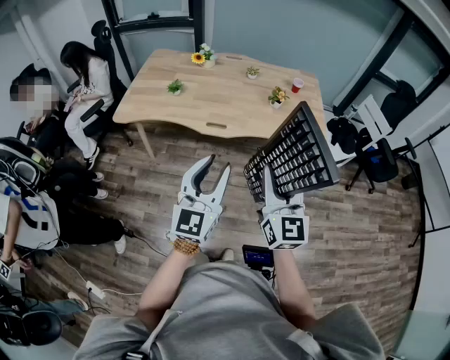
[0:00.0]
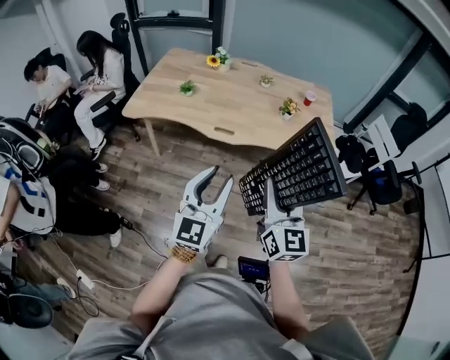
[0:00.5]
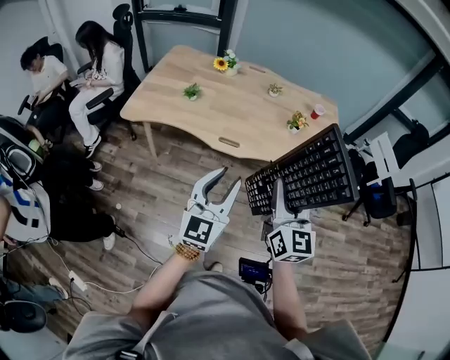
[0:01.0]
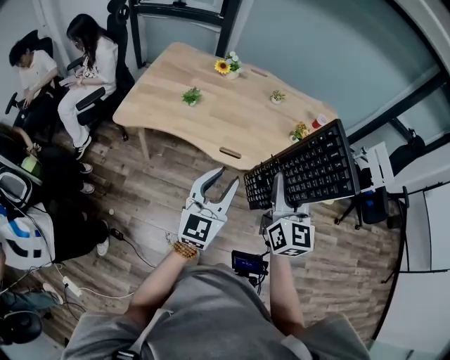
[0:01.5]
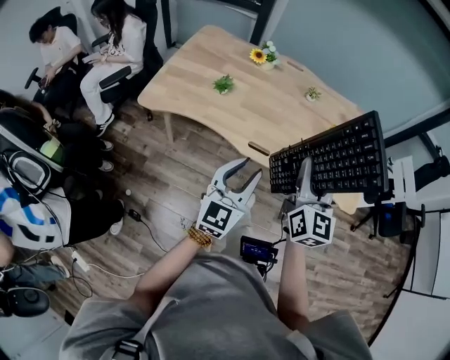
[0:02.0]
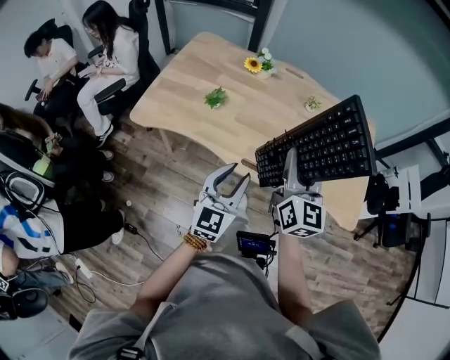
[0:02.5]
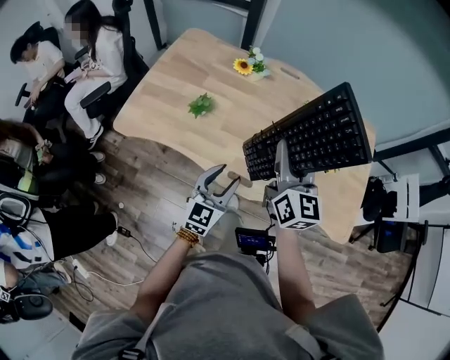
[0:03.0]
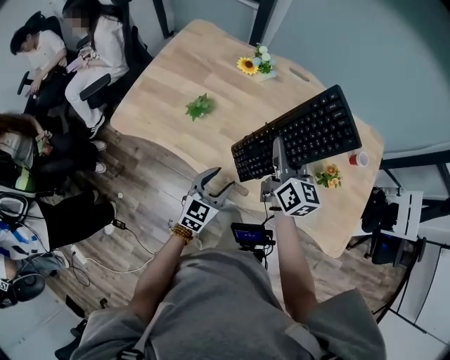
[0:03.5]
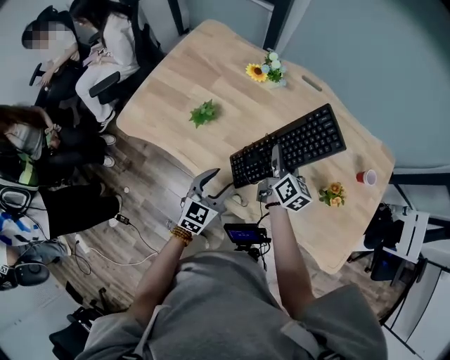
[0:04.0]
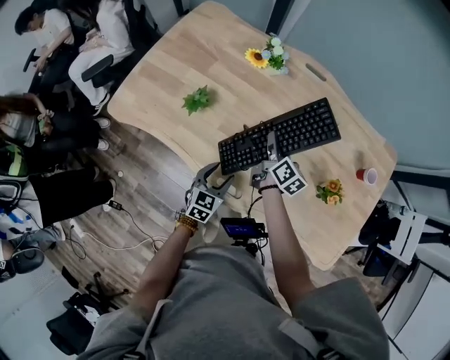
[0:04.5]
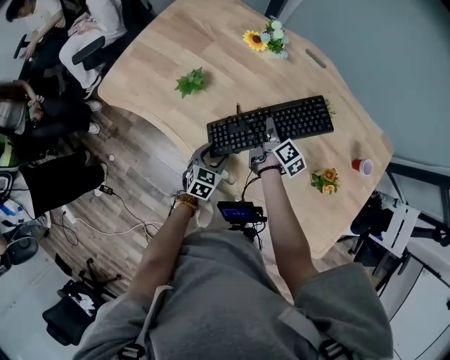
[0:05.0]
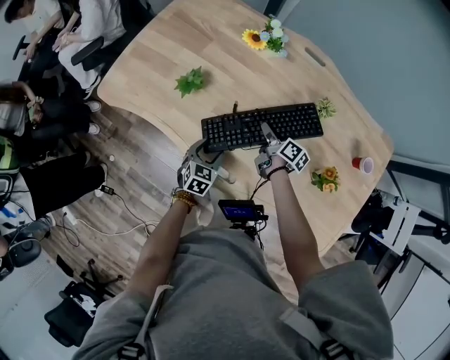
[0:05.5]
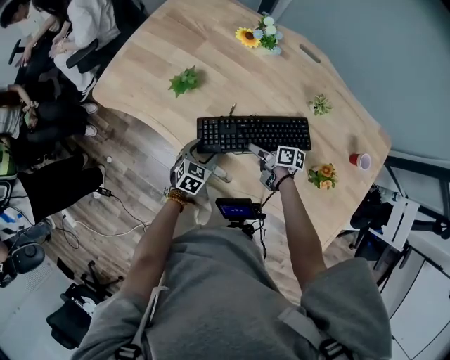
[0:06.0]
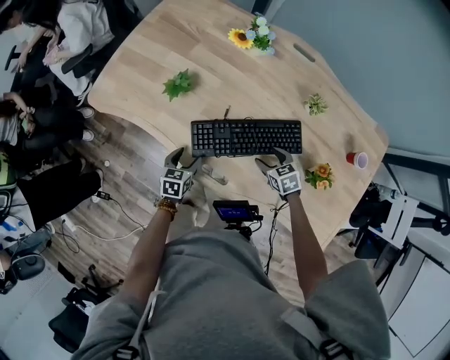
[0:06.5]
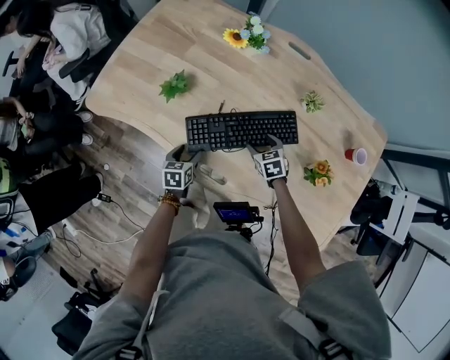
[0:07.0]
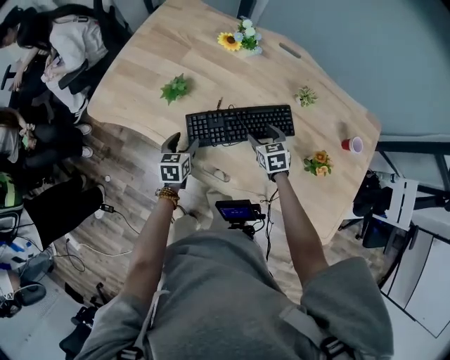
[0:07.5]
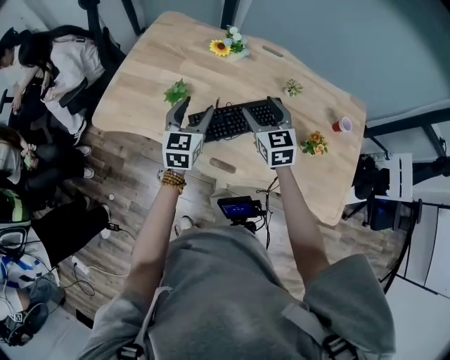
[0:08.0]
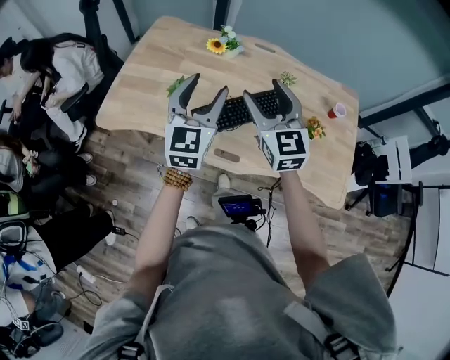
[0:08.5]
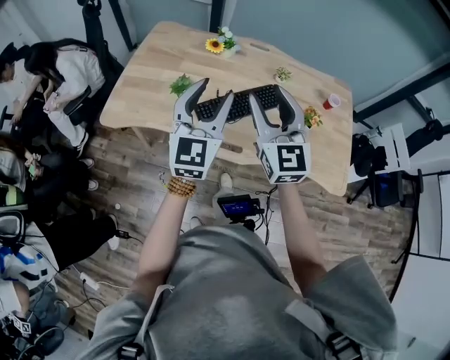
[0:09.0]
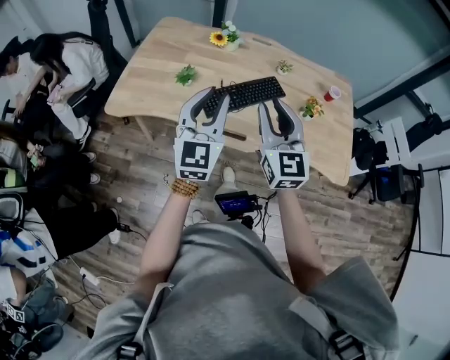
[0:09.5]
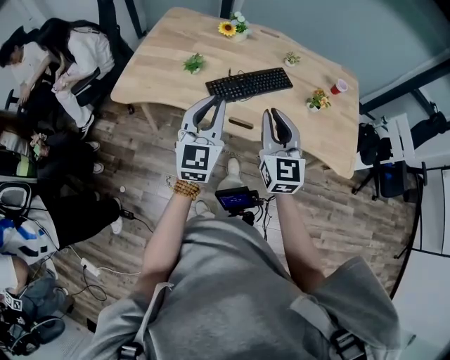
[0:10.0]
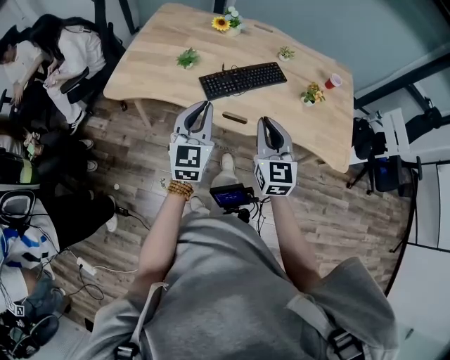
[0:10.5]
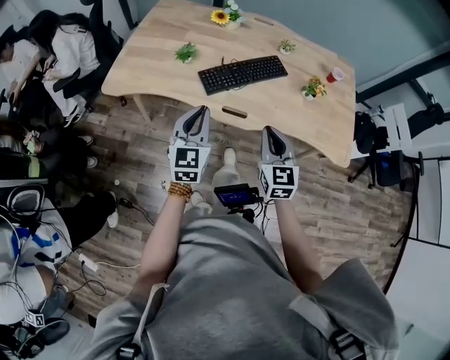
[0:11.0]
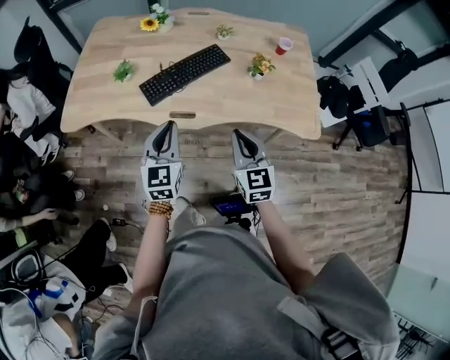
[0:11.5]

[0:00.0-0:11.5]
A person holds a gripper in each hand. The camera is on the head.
0:00.0 to 0:02.0: The right gripper moves forward and to the left, about 30 cm. Meanwhile the left gripper travels forward, to the left and downward by roughly 25 cm.
0:02.0 to 0:04.0: The two grippers go about 40 cm forward and downward. The left gripper turns by some 30 degrees. Meanwhile the right gripper swivels approximately 40 degrees.
0:04.0 to 0:06.0: Both grippers travel together downward, approximately 20 cm. The right gripper swivels approximately 60 degrees, and opens up. The left gripper rotates some 20 degrees.
0:06.0 to 0:07.5: The right gripper travels upward by approximately 5 cm, and rolls counterclockwise, seen from behind, by approximately 60 degrees; the left gripper travels to the left and forward by about 10 cm, and turns by approximately 20 degrees.
0:07.5 to 0:09.5: The two grippers go about 40 cm upward and backward. The left gripper points its fingers roughly 50 degrees further upward, and closes; the right gripper tips its fingers upward by about 50 degrees, and closes up.
0:09.5 to 0:11.5: Both grippers travel together downward, to the right and backward, roughly 20 cm. The right gripper swivels roughly 20 degrees.

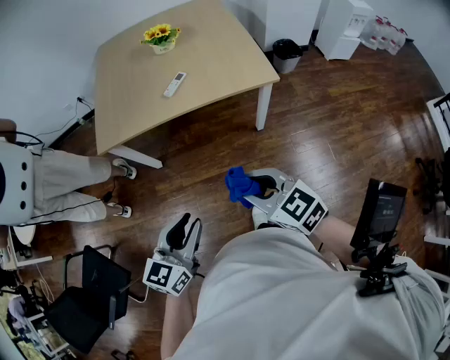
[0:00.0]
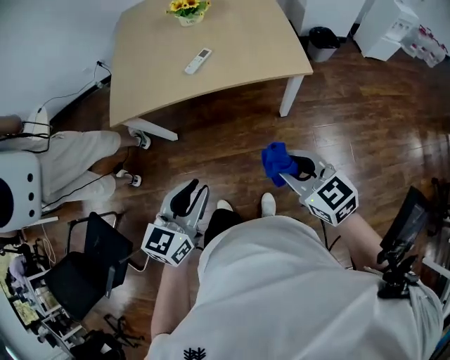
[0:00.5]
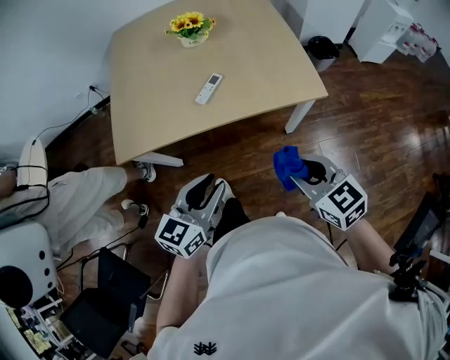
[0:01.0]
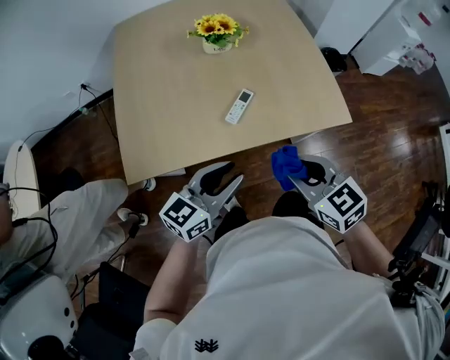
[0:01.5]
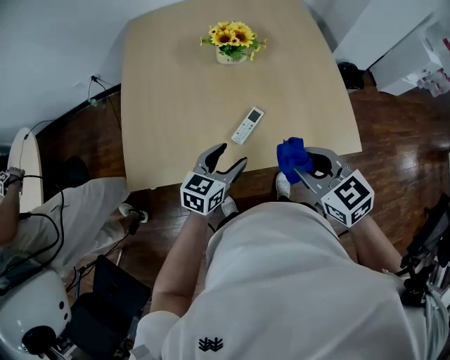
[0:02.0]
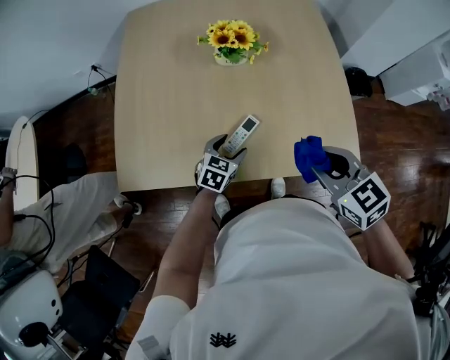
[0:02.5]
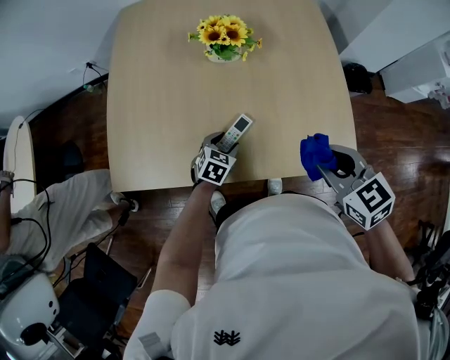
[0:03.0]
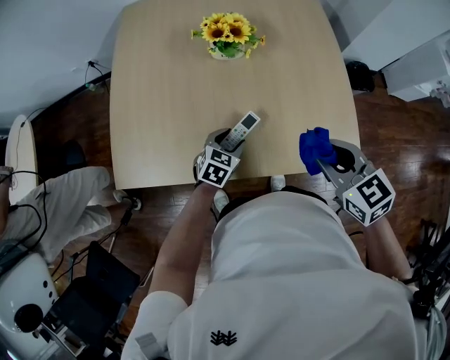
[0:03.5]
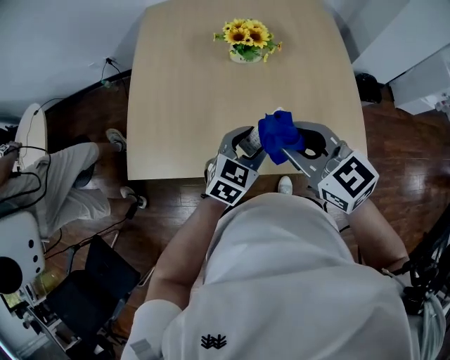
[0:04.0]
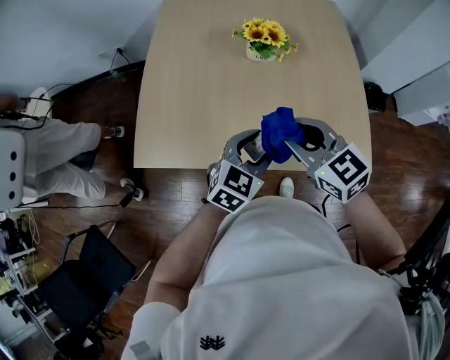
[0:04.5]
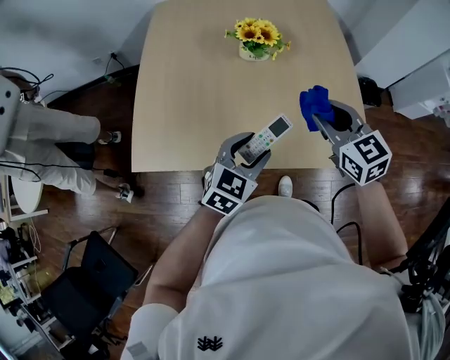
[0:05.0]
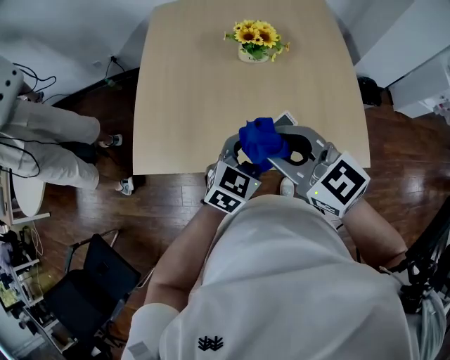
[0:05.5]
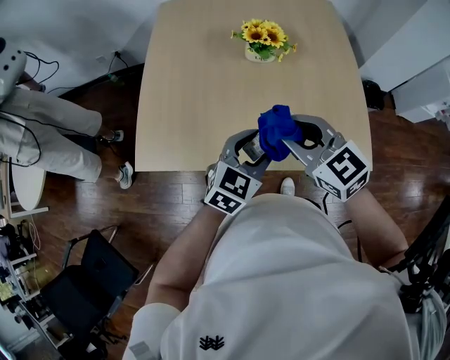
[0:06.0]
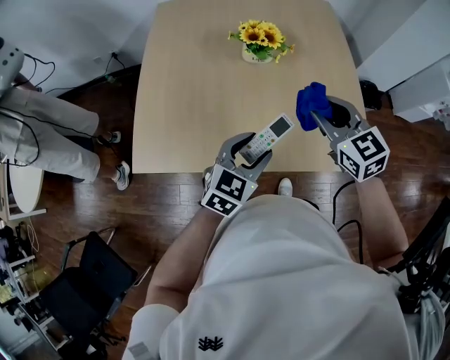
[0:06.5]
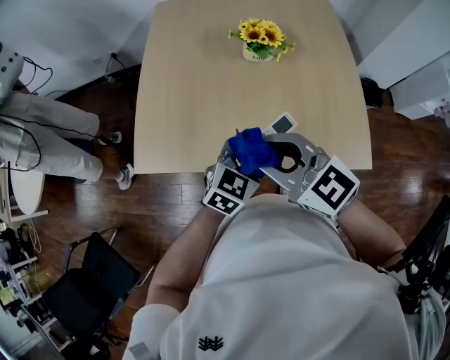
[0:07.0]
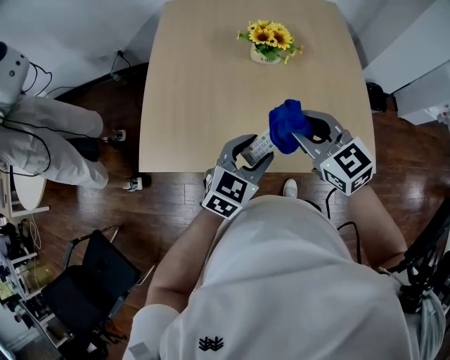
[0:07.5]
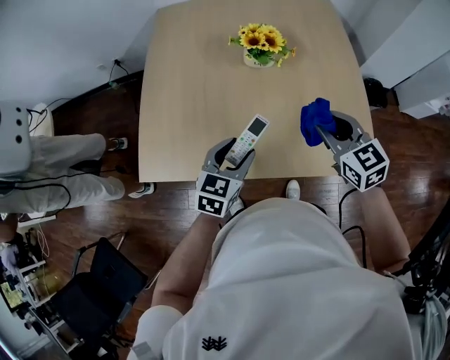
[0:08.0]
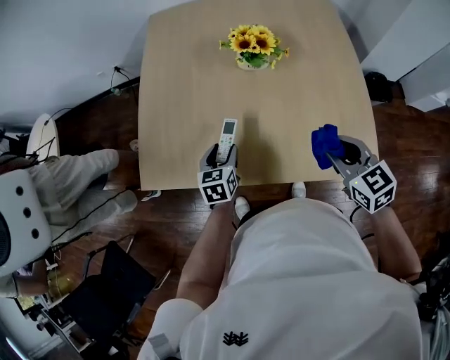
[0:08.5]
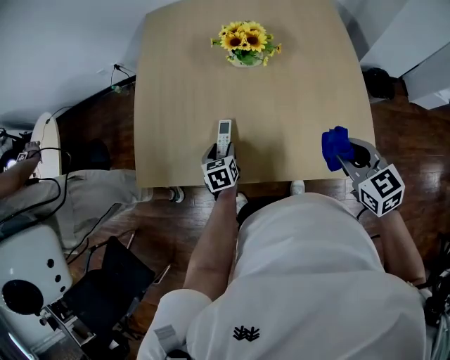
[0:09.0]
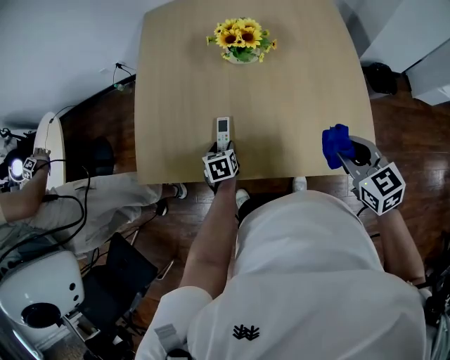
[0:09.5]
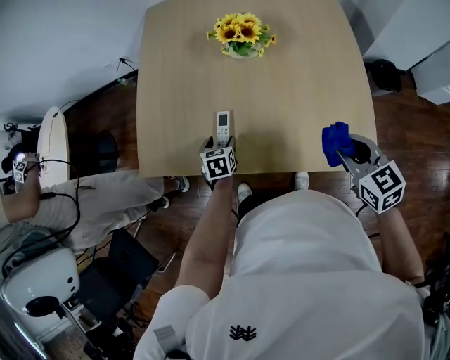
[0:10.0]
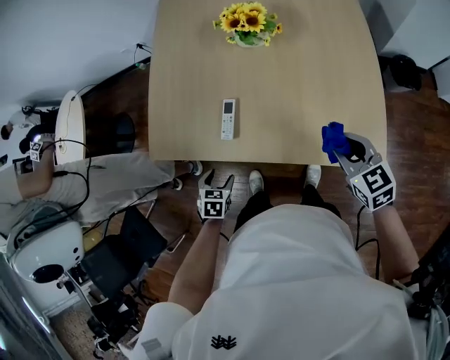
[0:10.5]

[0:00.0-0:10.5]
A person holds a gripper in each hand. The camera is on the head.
0:00.0 to 0:02.0: The two grippers travel together, forward, about 50 cm. The left gripper opens up.
0:02.0 to 0:04.0: The left gripper moves to the right, roughly 5 cm, and moves some 15 cm downward and comes back. The right gripper moves forward and upward, some 10 cm, and travels to the right and back again, some 10 cm each way.
0:04.0 to 0:06.5: The left gripper moves roughly 5 cm; the right gripper moves left and right over about 15 cm, changing direction 2 times.
0:06.5 to 0:08.5: The left gripper goes about 15 cm downward, to the left and forward, and rotates approximately 40 degrees; the right gripper shifts approximately 5 cm downward, and moves approximately 15 cm to the left and comes back.
0:08.5 to 0:10.5: The left gripper travels backward and downward by some 20 cm, and swivels approximately 30 degrees; the right gripper shifts approximately 10 cm downward and to the right.

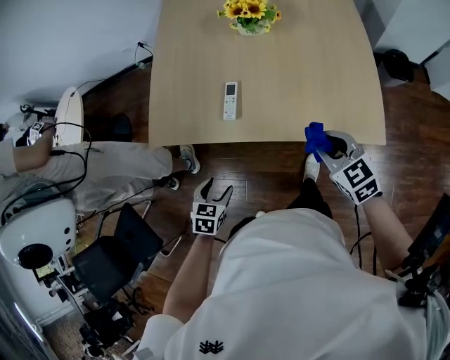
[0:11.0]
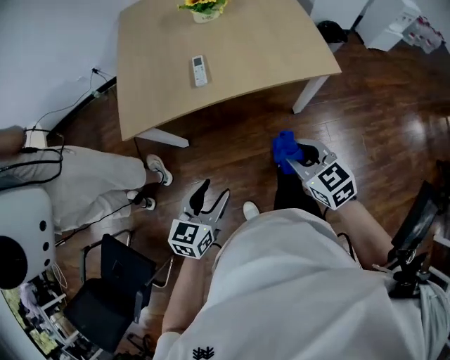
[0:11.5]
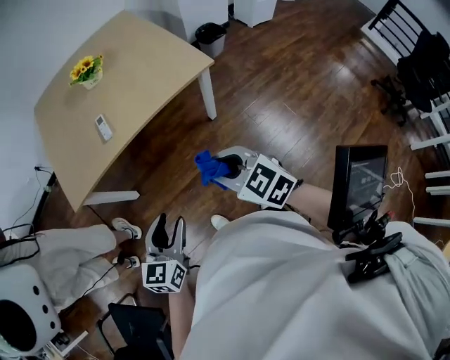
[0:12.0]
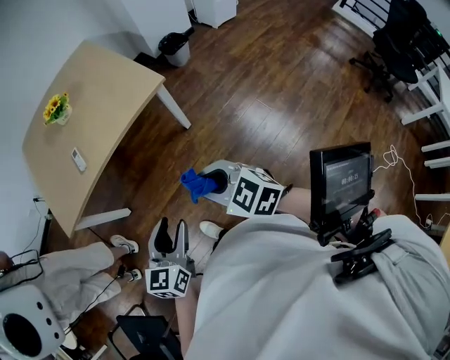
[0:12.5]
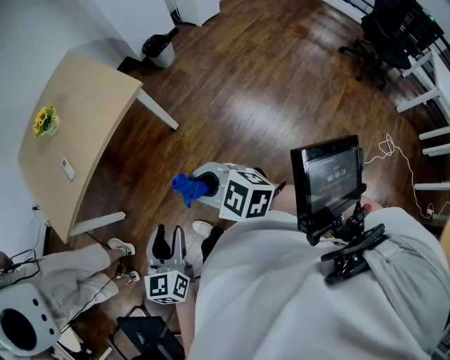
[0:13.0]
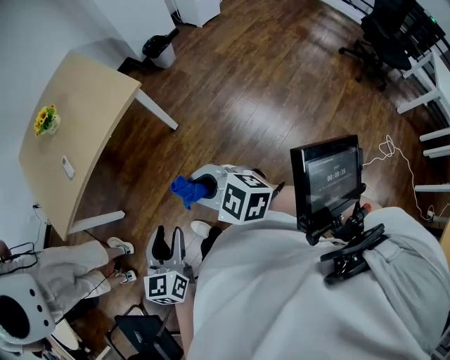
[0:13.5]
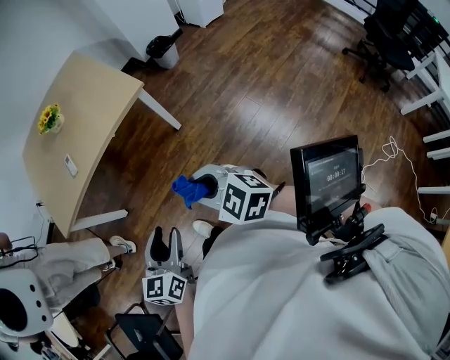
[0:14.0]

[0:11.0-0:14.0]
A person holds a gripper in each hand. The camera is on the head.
0:11.0 to 0:12.5: The right gripper moves approximately 50 cm. Meanwhile the left gripper ends up roughly 40 cm from where it was, and points its fingers roughly 40 degrees further upward.
0:12.5 to 0:14.0: The grippers both shift backward by about 5 cm.

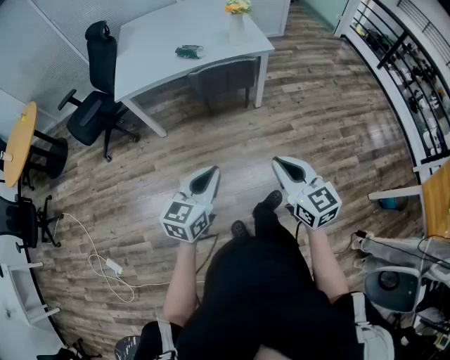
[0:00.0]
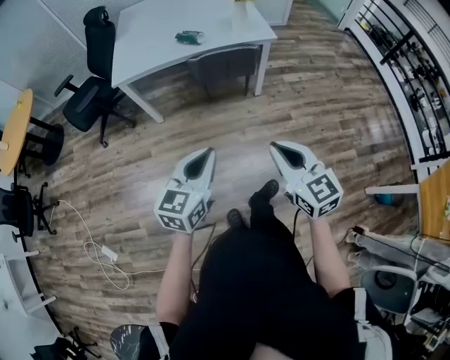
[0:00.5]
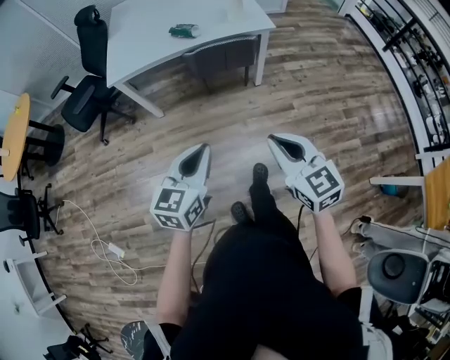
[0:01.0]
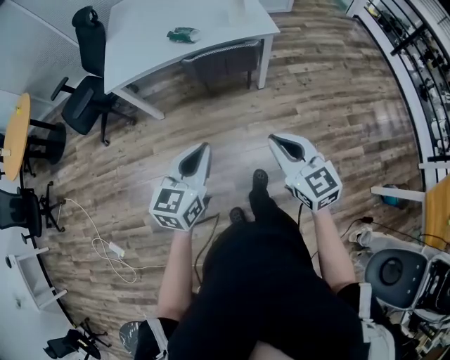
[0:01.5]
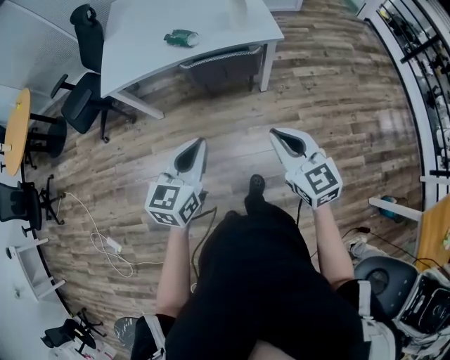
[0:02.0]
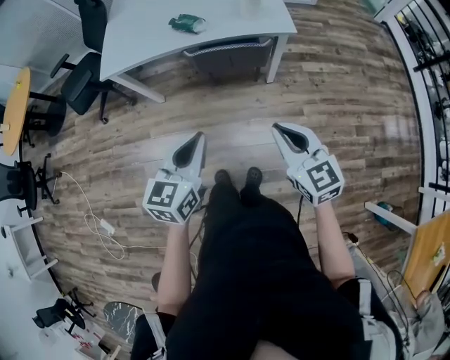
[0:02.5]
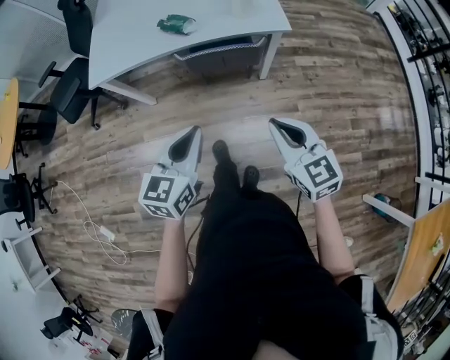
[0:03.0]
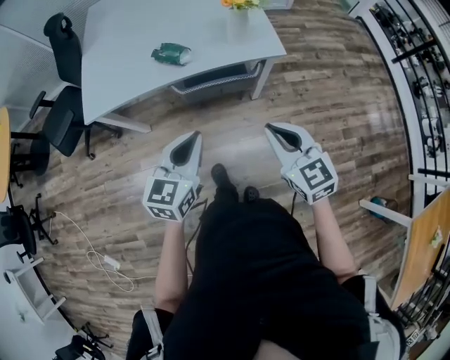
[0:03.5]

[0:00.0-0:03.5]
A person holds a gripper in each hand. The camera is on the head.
0:00.0 to 0:02.0: The two grippers go roughly 20 cm forward.
0:02.0 to 0:03.5: The two grippers go approximately 20 cm forward.
